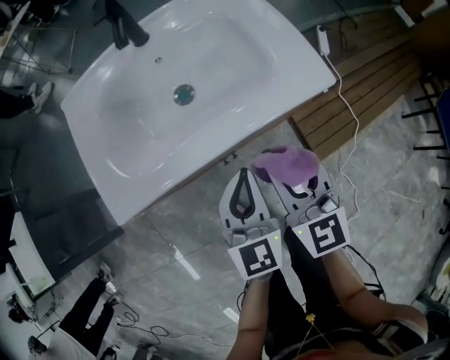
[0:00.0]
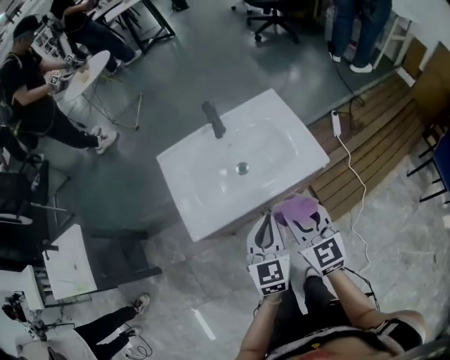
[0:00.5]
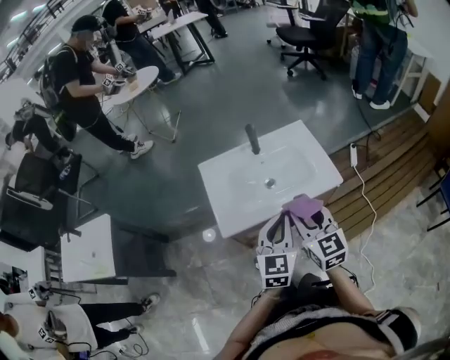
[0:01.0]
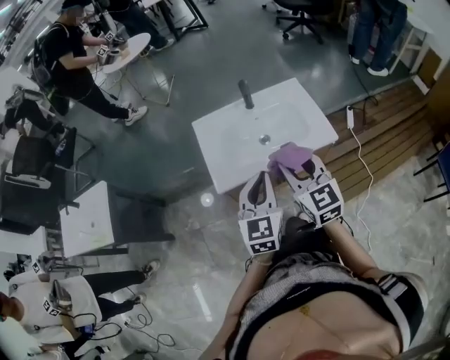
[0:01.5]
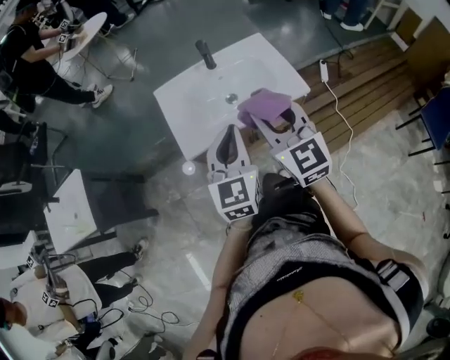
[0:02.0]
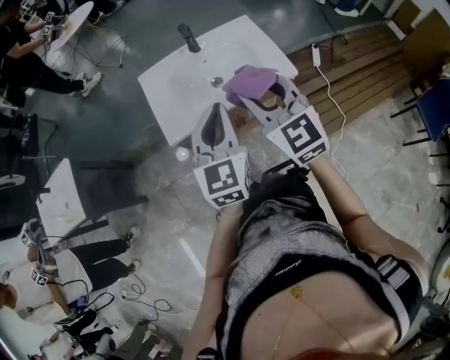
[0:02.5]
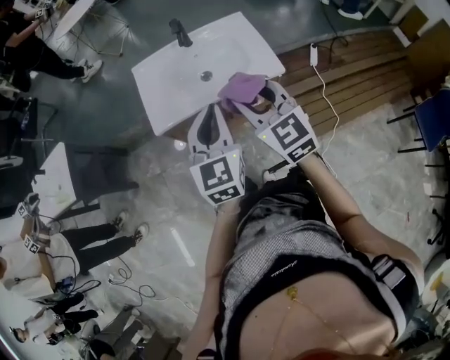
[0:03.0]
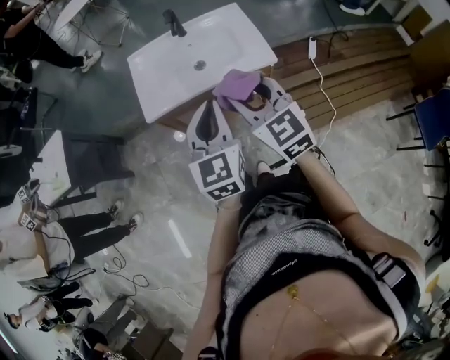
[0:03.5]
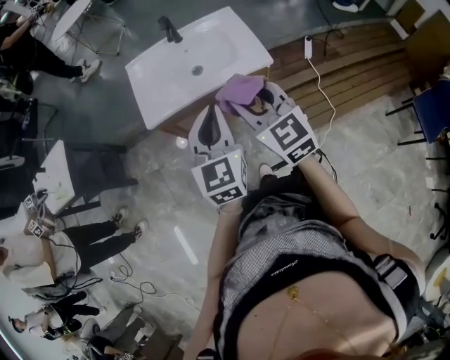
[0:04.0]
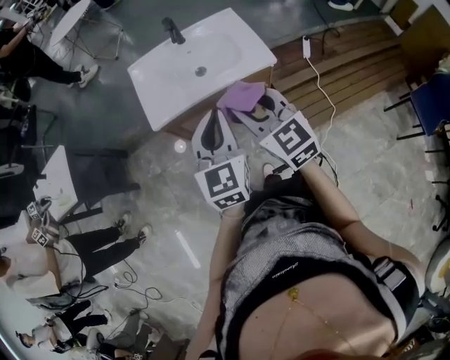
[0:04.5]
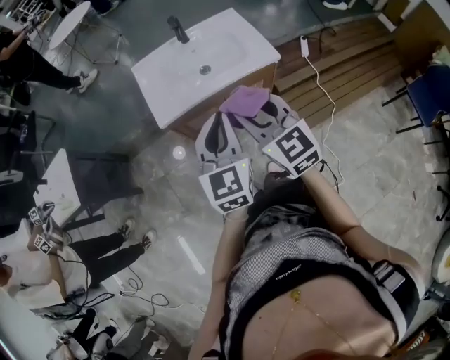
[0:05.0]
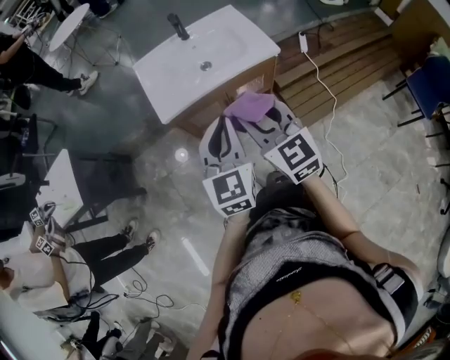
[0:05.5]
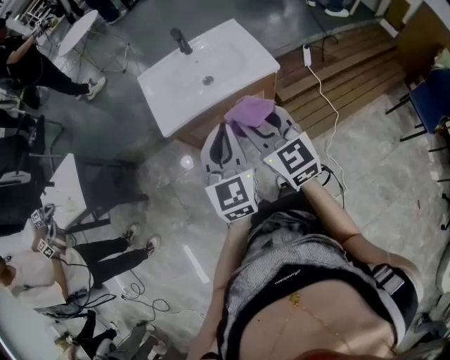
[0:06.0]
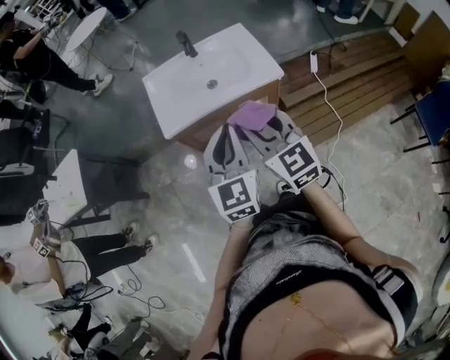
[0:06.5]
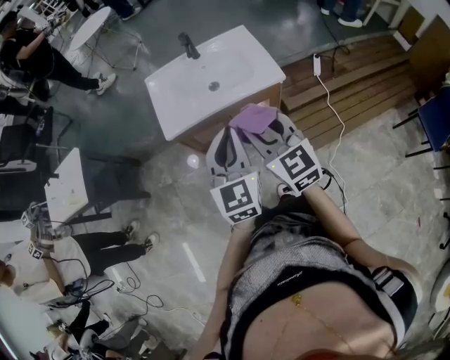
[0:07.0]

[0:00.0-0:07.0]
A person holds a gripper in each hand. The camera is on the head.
0:00.0 to 0:02.0: The two grippers go roughly 30 cm upward.
0:02.0 to 0:03.5: The right gripper heads backward and to the right, covering some 10 cm; the left gripper goes approximately 15 cm to the right and backward.
0:03.5 to 0:05.0: The two grippers go about 10 cm to the left.
0:05.0 to 0:07.0: Both grippers travel together to the right, about 5 cm.

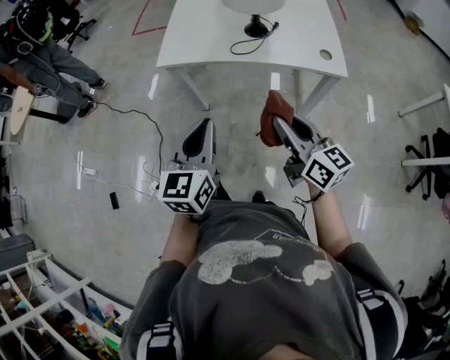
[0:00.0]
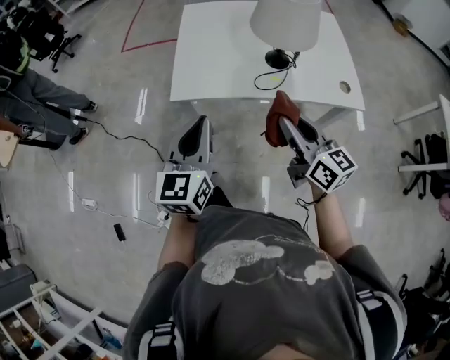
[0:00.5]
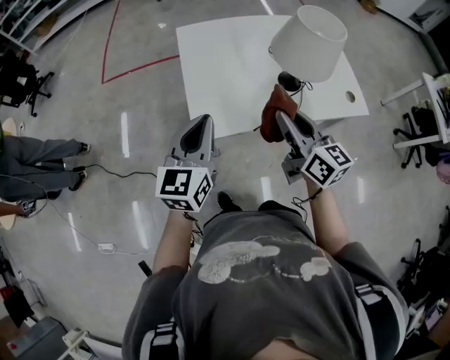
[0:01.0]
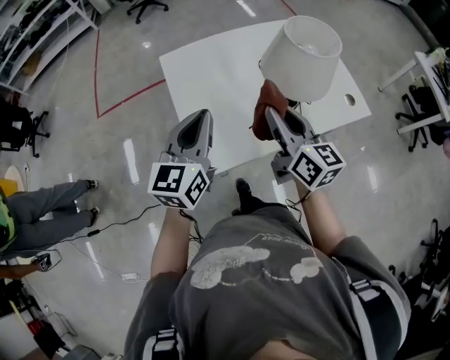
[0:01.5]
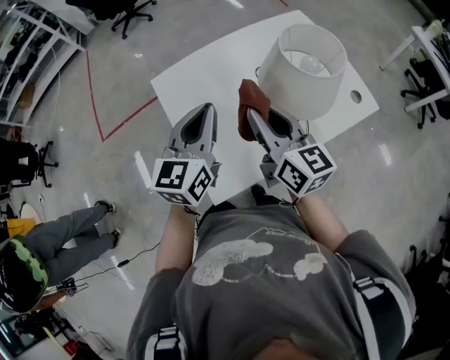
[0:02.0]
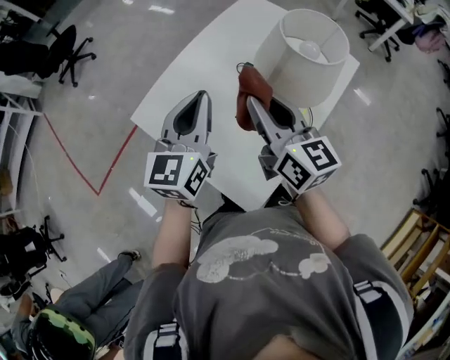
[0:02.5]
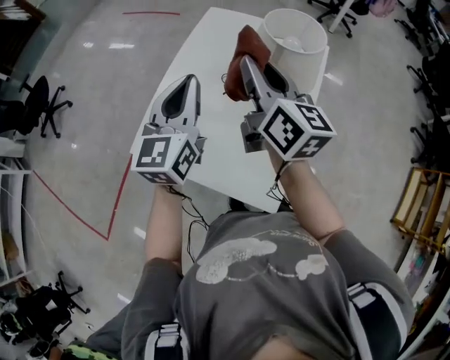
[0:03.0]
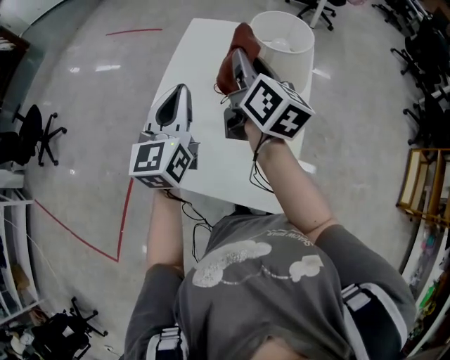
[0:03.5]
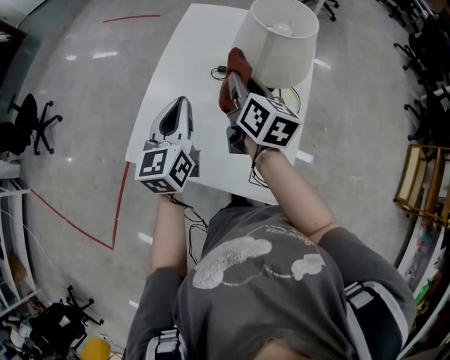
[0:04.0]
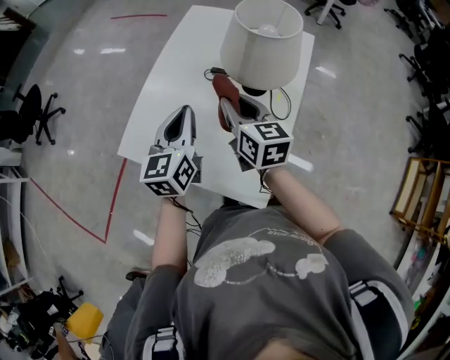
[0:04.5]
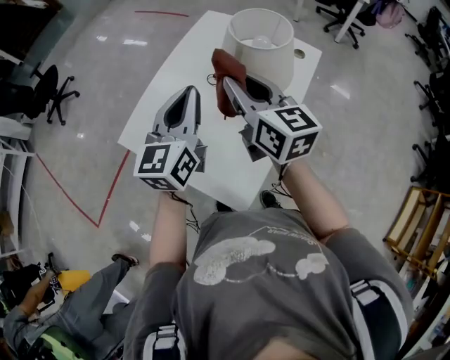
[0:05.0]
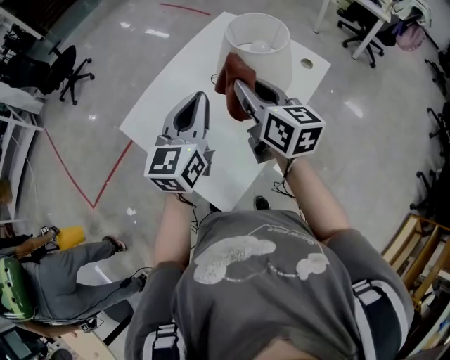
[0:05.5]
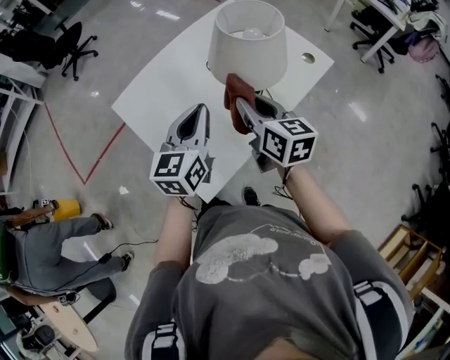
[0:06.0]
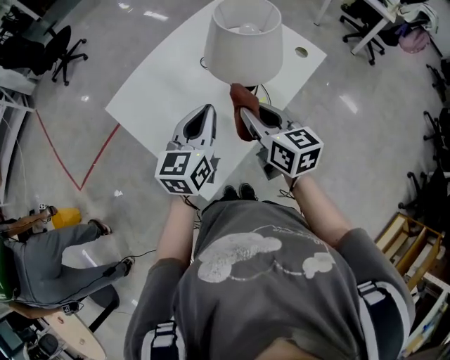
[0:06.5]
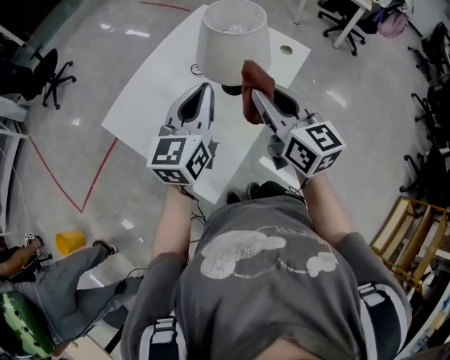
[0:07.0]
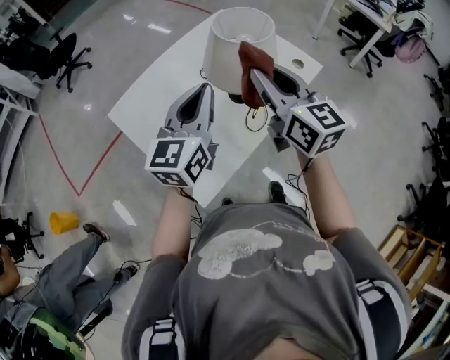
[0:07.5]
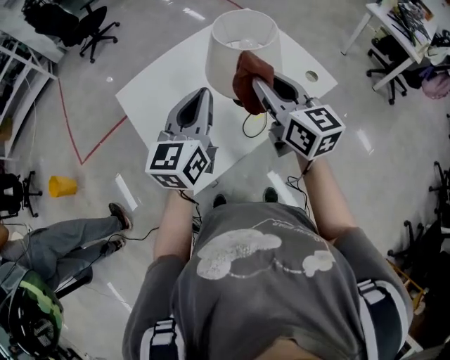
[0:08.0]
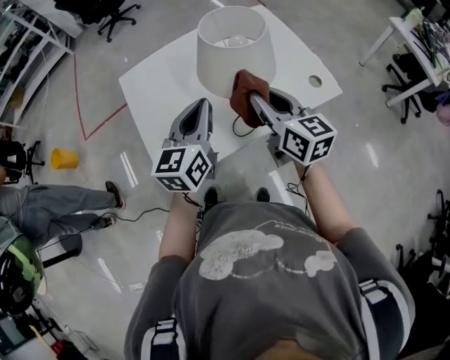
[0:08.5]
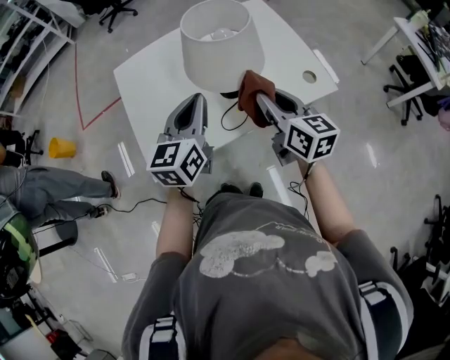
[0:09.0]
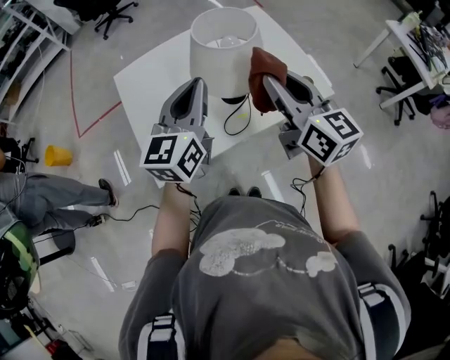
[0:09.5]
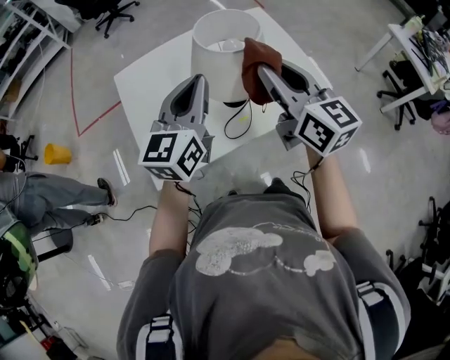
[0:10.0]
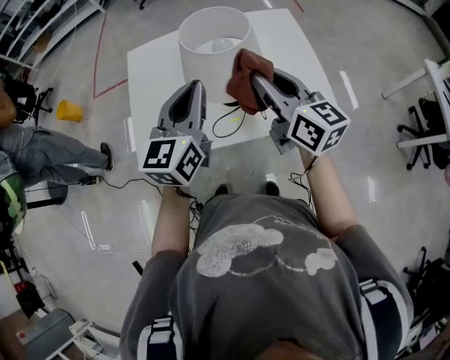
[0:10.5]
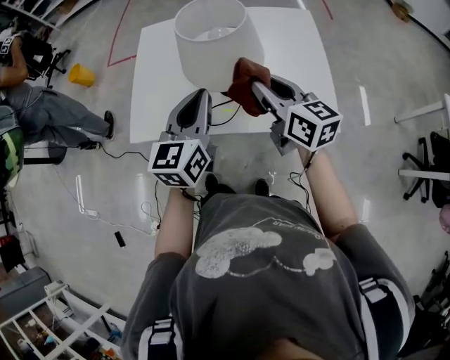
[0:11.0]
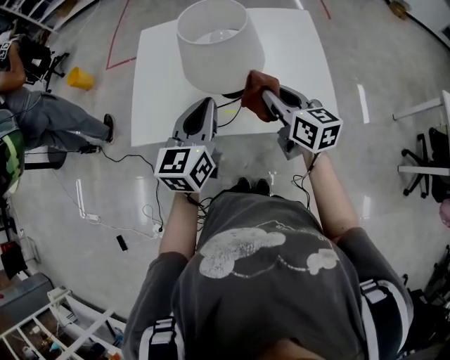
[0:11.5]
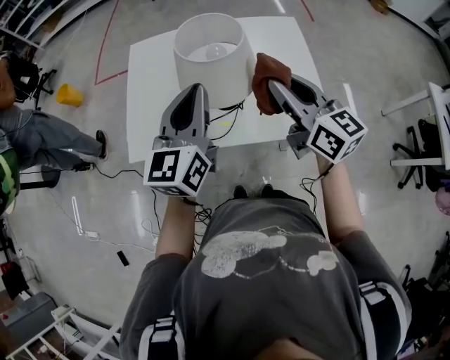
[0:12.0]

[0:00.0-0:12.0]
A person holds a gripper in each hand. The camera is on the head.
0:00.0 to 0:02.0: Both grippers are carried some 50 cm. The left gripper rotates roughly 40 degrees. The right gripper changes its angle by some 40 degrees.
0:02.0 to 0:04.0: The left gripper ends up about 15 cm from where it was, and changes its angle by roughly 40 degrees. Meanwhile the right gripper changes place by approximately 10 cm, and turns by some 60 degrees.
0:04.0 to 0:06.0: The right gripper travels upward and back again, roughly 10 cm each way, and swivels about 40 degrees. Meanwhile the left gripper travels upward and back again, approximately 10 cm each way.
0:06.0 to 0:08.0: The grippers both shift upward and to the right by some 10 cm. The right gripper swivels some 20 degrees.
0:08.0 to 0:10.0: Both grippers travel together to the right, some 5 cm. The left gripper goes downward and returns, some 5 cm each way; the right gripper goes downward and returns, roughly 10 cm each way.
0:10.0 to 0:12.0: The right gripper travels downward and back again, about 15 cm each way, and turns by some 20 degrees, while the left gripper moves some 10 cm downward and comes back, and swivels some 20 degrees.

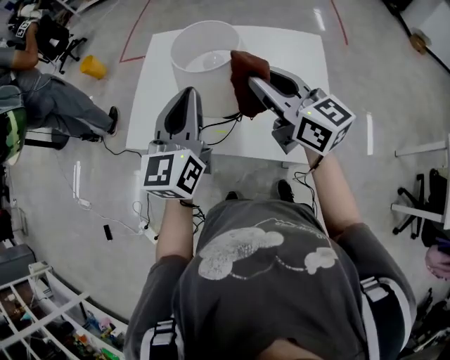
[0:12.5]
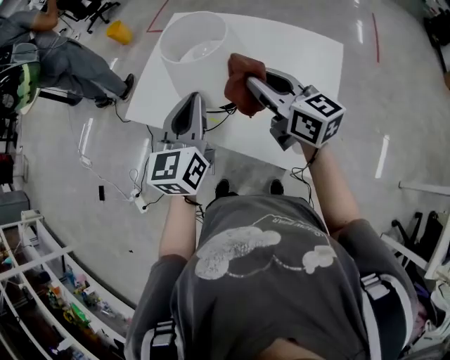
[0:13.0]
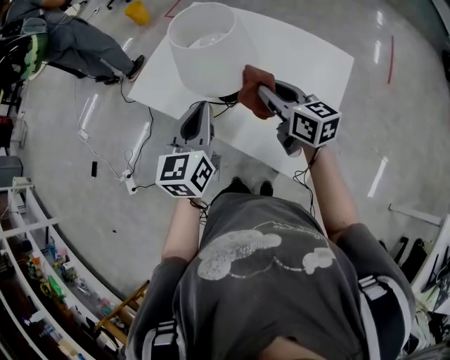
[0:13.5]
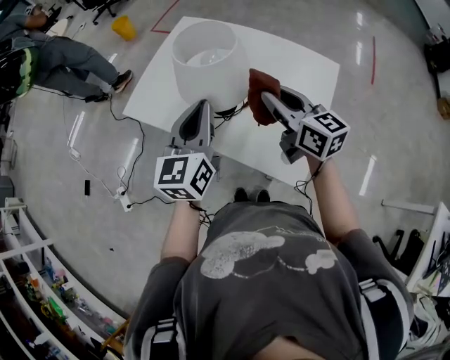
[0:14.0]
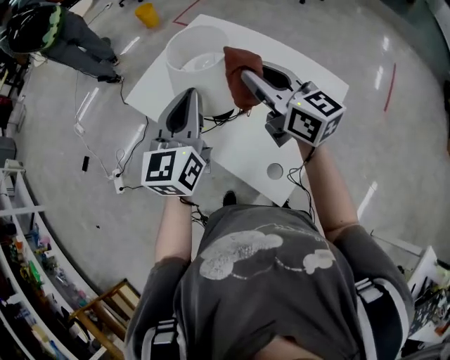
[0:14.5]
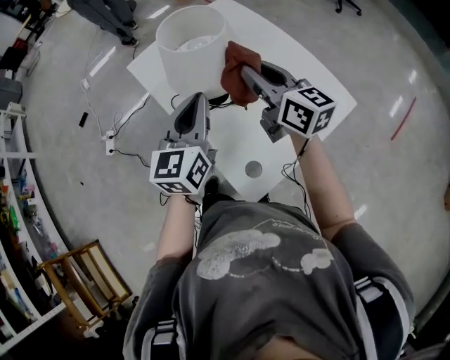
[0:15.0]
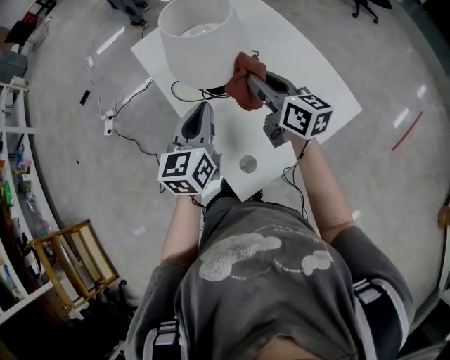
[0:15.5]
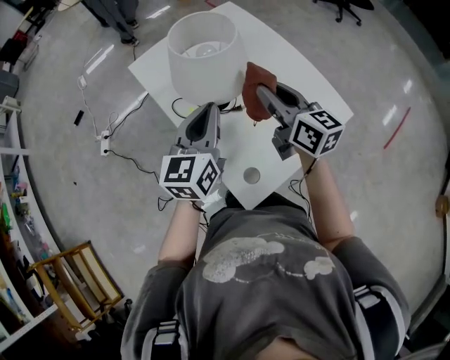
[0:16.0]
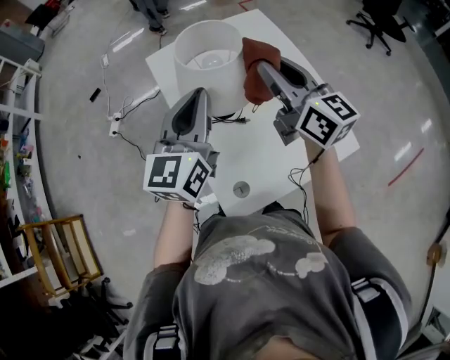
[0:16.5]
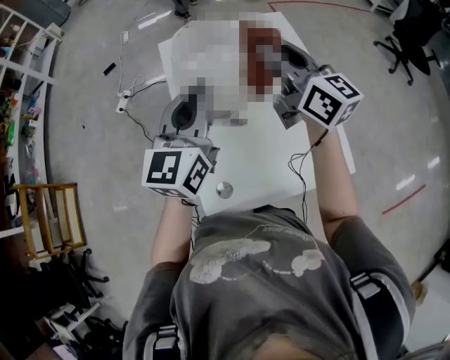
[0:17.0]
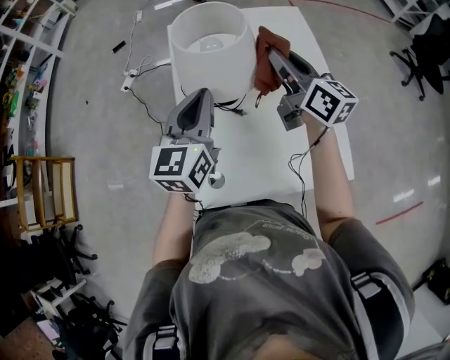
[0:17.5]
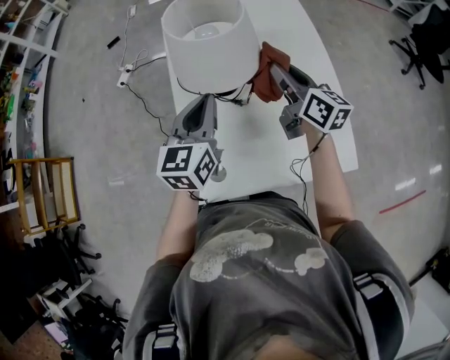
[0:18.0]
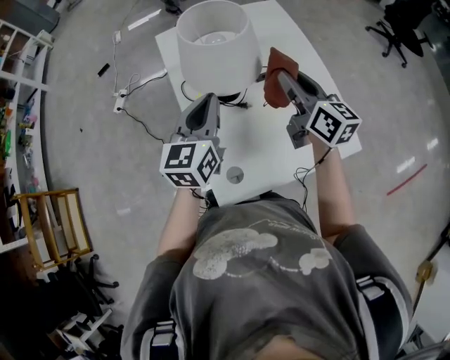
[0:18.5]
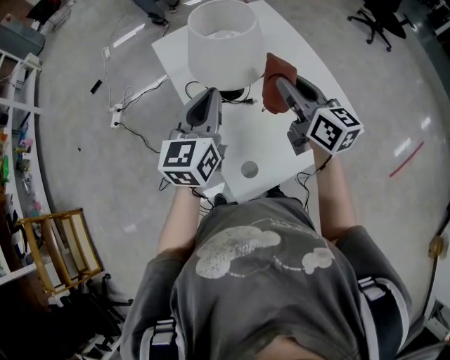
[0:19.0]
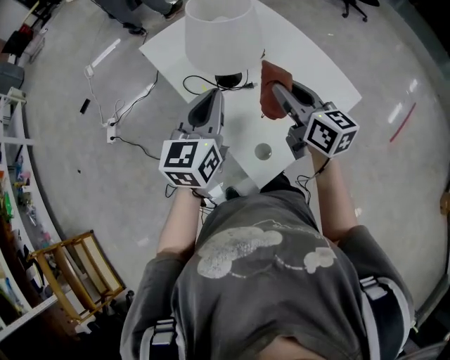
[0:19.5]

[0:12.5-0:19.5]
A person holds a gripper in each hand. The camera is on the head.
0:12.5 to 0:14.5: The right gripper moves about 15 cm downward and comes back, and rotates some 30 degrees; the left gripper reaches approximately 10 cm downward, then returns, and rotates some 30 degrees.
0:14.5 to 0:16.0: Both grippers move to the right and downward, some 10 cm.
0:16.0 to 0:17.5: The right gripper goes upward and returns, about 15 cm each way, and rotates some 30 degrees. The left gripper goes upward and returns, some 10 cm each way, and turns by some 30 degrees.
0:17.5 to 0:19.5: The right gripper ends up approximately 20 cm from where it was, and changes its angle by some 30 degrees. Meanwhile the left gripper shifts by roughly 10 cm, and swivels about 30 degrees.
